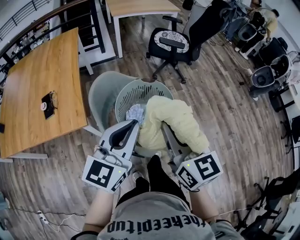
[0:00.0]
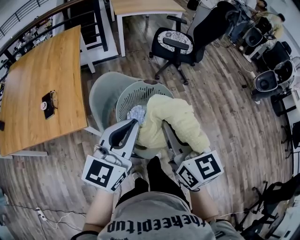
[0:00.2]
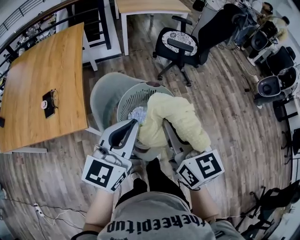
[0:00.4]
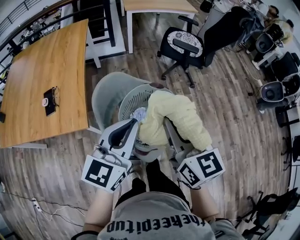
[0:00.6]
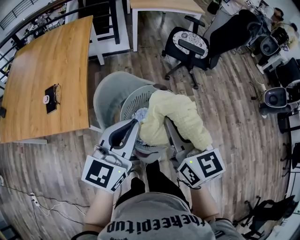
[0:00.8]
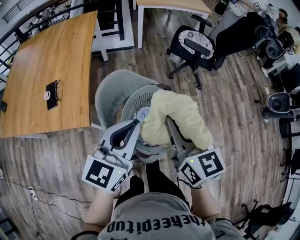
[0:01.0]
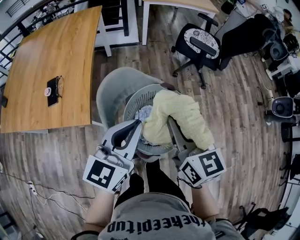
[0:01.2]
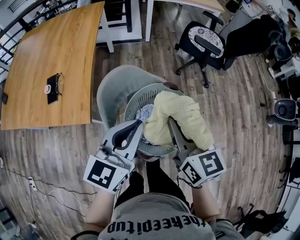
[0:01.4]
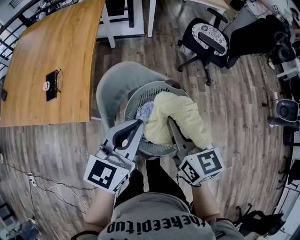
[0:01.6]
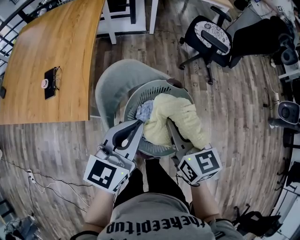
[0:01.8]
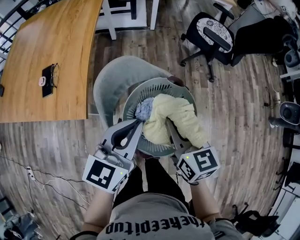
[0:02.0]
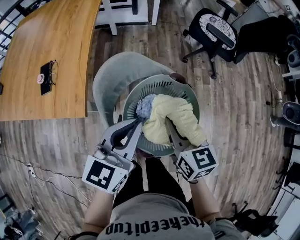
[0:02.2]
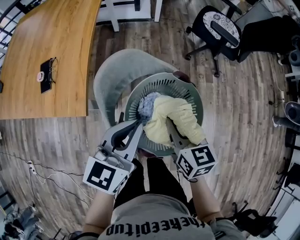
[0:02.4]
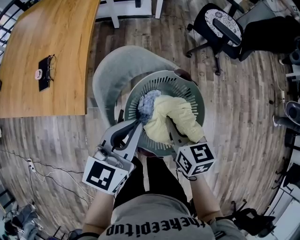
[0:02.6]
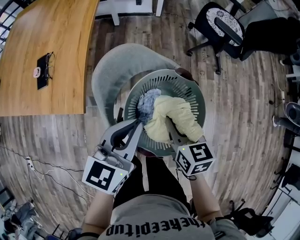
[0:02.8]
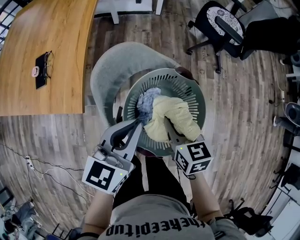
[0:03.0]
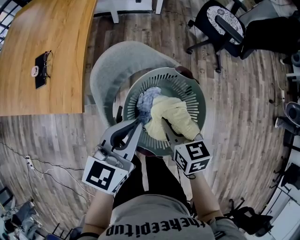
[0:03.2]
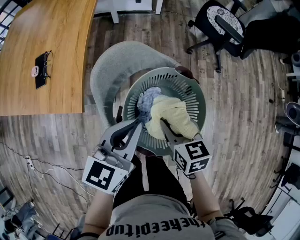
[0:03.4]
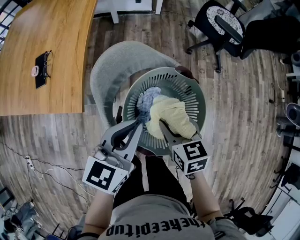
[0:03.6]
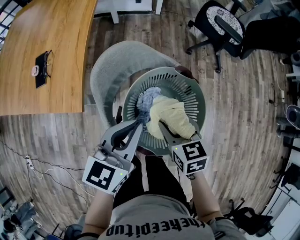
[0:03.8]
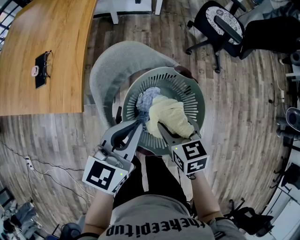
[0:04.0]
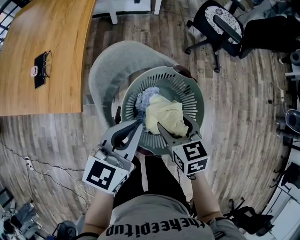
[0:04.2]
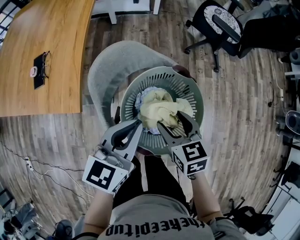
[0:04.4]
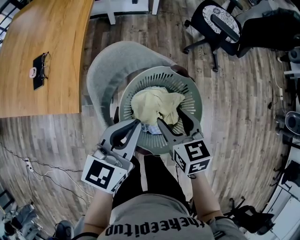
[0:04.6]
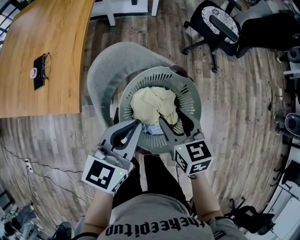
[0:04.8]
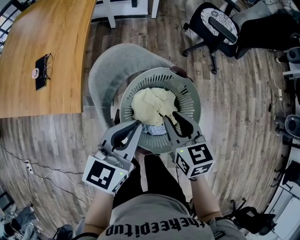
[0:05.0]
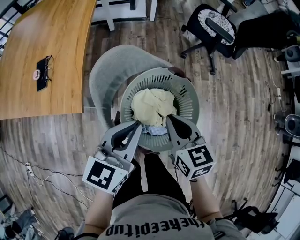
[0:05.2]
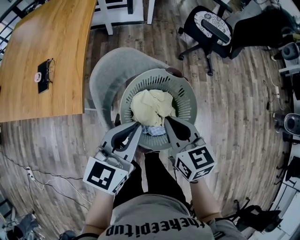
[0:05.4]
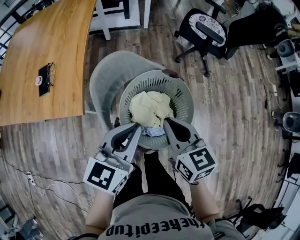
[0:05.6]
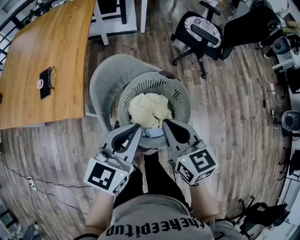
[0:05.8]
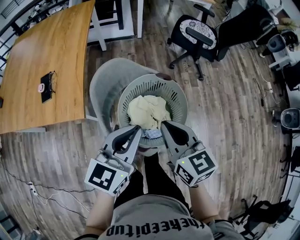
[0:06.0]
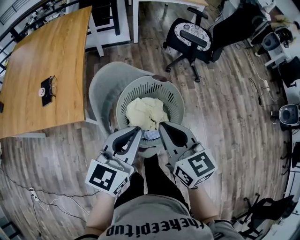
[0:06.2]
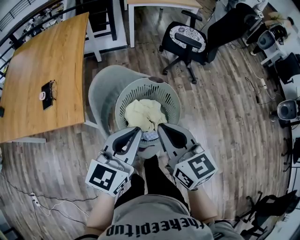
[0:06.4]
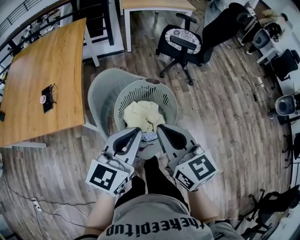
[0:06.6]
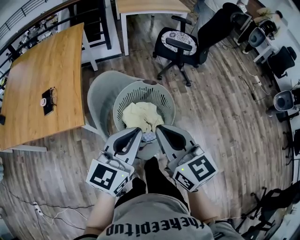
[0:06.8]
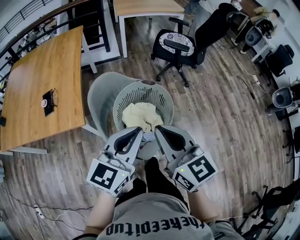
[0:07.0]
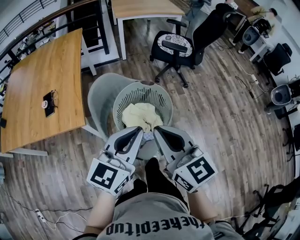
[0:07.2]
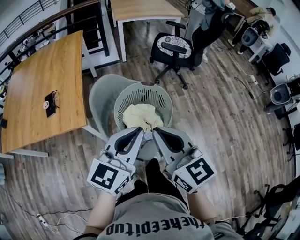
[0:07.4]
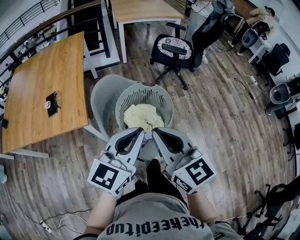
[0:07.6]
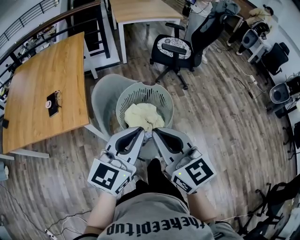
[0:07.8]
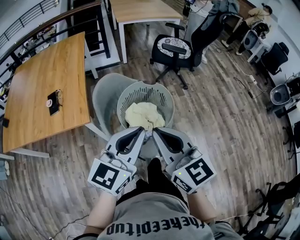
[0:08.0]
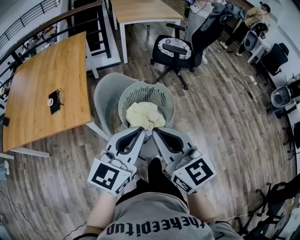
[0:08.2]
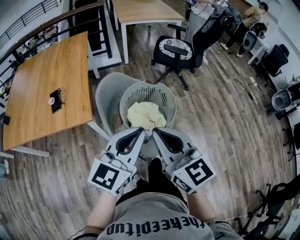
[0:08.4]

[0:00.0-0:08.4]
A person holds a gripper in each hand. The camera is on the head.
0:00.0 to 0:01.4: The right gripper is displaced forward and downward by some 15 cm; the left gripper goes approximately 10 cm forward.
0:01.4 to 0:02.8: The right gripper goes about 15 cm downward, and changes its angle by about 20 degrees; the left gripper moves downward, about 10 cm.
0:02.8 to 0:04.2: The right gripper opens up.
0:04.2 to 0:05.6: The left gripper changes place by approximately 5 cm. The right gripper goes roughly 10 cm upward, and closes.
0:05.6 to 0:07.0: The grippers both shift upward and backward by approximately 15 cm.
0:07.0 to 0:08.4: Both grippers move backward, roughly 5 cm.

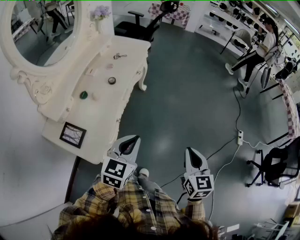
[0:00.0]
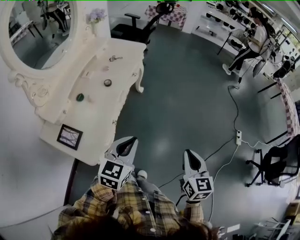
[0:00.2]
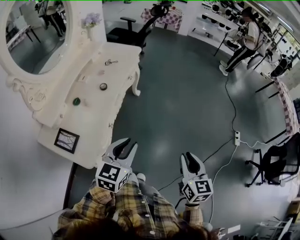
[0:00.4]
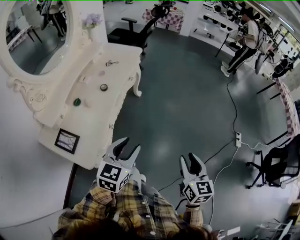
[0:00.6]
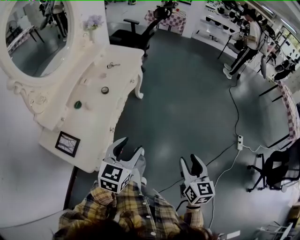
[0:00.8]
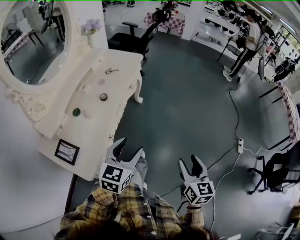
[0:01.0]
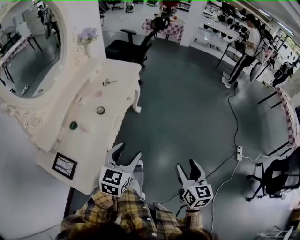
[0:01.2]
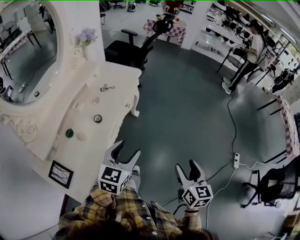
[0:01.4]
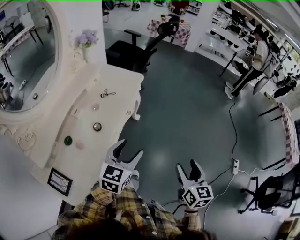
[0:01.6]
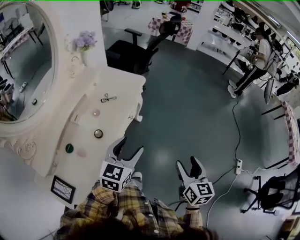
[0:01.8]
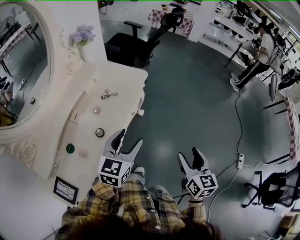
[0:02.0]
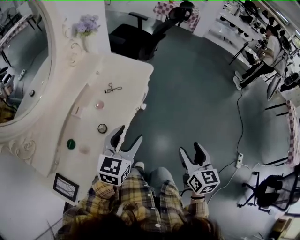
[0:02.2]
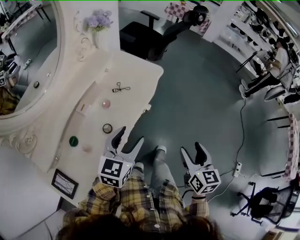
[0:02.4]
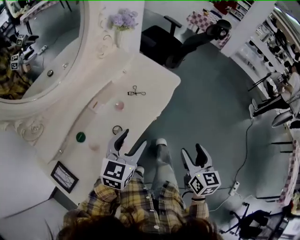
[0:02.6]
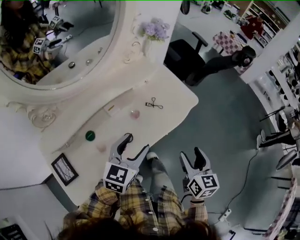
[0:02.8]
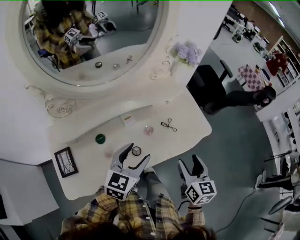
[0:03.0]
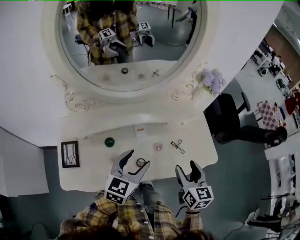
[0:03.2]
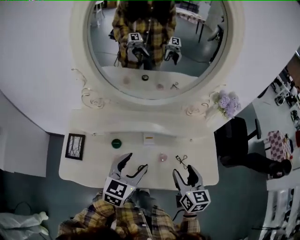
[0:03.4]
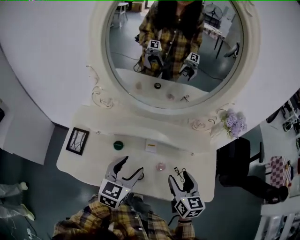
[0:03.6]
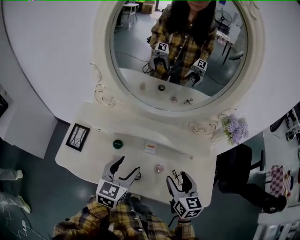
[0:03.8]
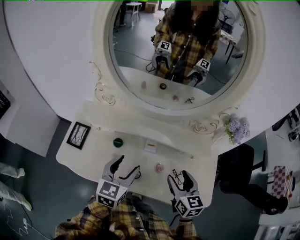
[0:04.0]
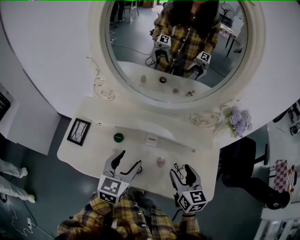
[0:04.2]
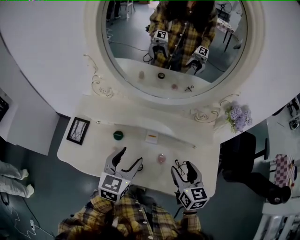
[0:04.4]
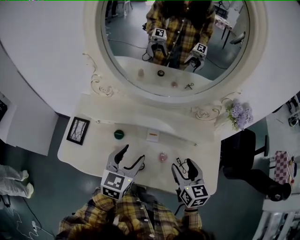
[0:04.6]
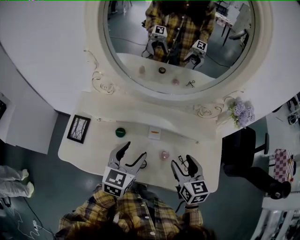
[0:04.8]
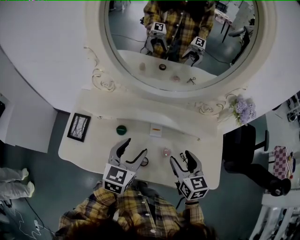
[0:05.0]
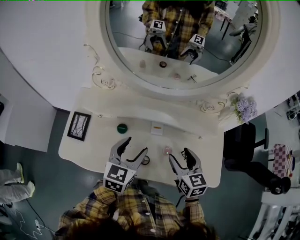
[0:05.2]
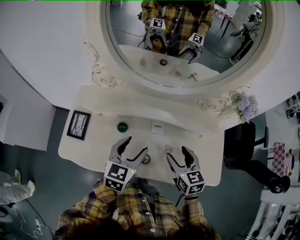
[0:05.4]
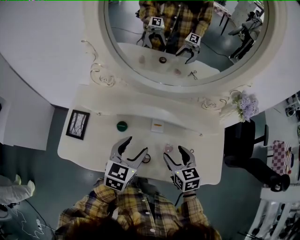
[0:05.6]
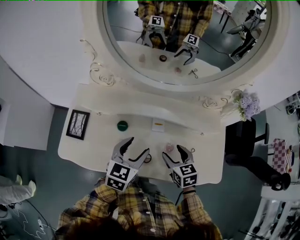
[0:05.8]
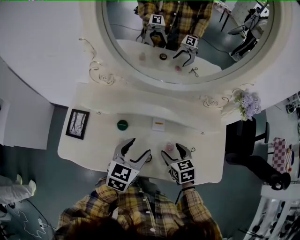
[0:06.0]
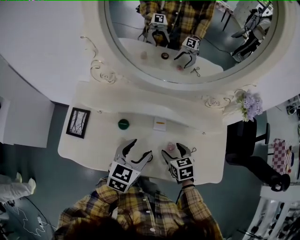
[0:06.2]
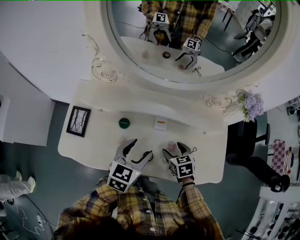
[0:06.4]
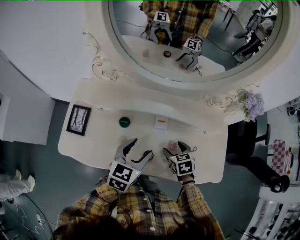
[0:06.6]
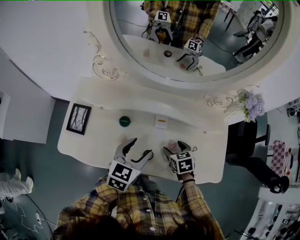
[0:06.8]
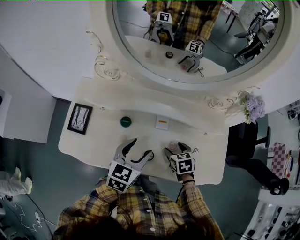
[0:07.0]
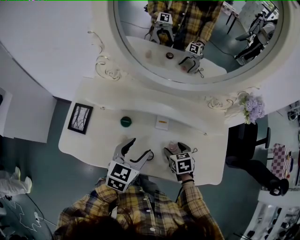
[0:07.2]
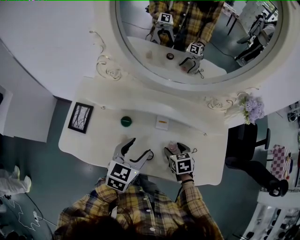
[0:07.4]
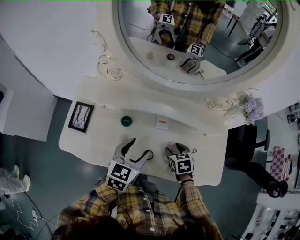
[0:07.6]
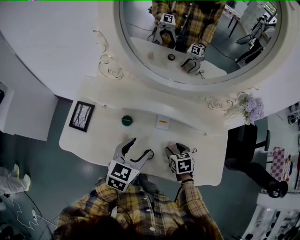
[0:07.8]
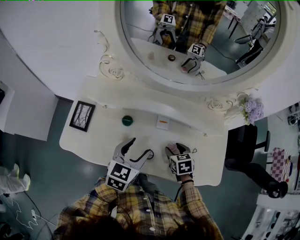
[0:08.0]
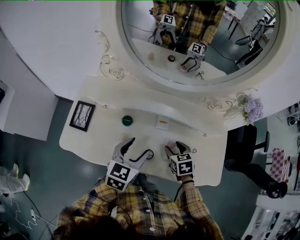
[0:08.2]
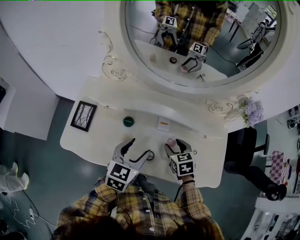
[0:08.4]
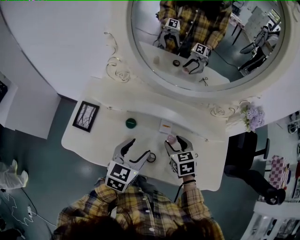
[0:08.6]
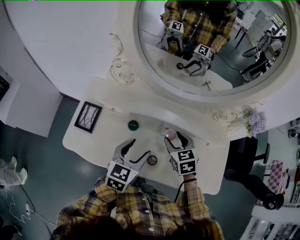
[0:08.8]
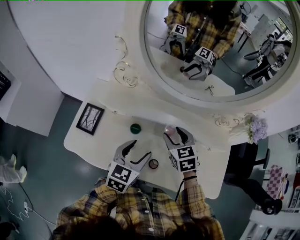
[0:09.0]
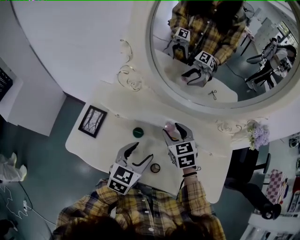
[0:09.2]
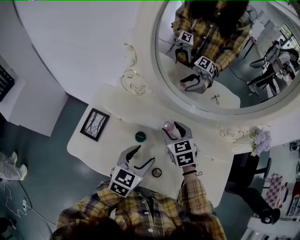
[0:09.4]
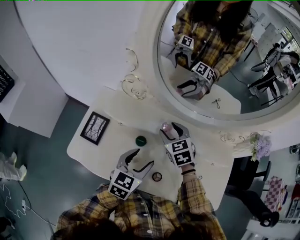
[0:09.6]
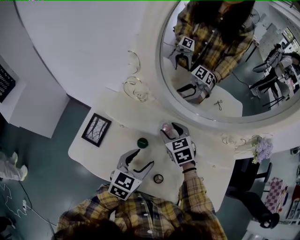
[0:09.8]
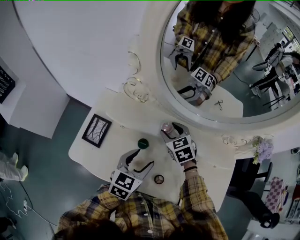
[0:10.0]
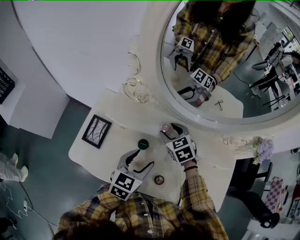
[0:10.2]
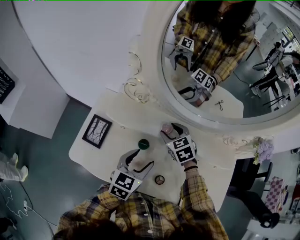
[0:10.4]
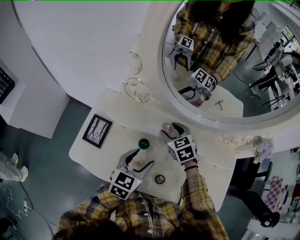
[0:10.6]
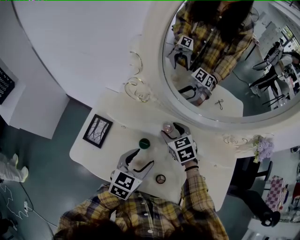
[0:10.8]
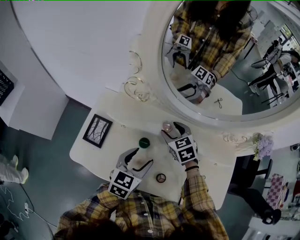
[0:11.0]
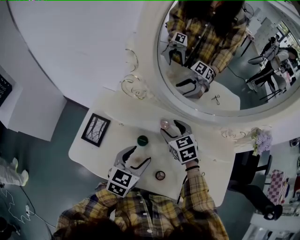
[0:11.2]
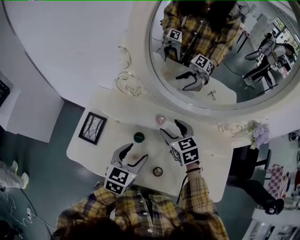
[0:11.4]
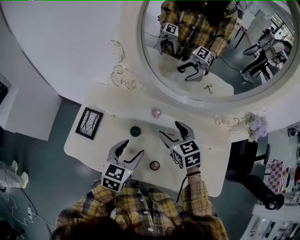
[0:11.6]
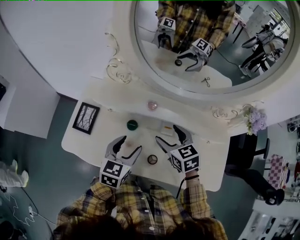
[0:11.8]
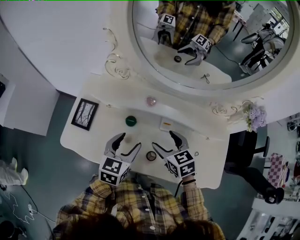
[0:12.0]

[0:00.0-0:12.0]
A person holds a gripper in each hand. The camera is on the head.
0:00.0 to 0:01.6: The grippers both shift forward by roughly 25 cm. The left gripper opens. Meanwhile the right gripper opens its fingers.
0:01.6 to 0:03.0: The left gripper ends up some 25 cm from where it was, and rotates about 40 degrees. The right gripper shifts by approximately 40 cm, and swivels about 50 degrees.
0:03.0 to 0:04.4: The right gripper changes place by roughly 15 cm, and swivels about 40 degrees. The left gripper shifts by roughly 5 cm, and rotates some 40 degrees.
0:04.4 to 0:06.0: The right gripper heads downward and to the left, covering about 15 cm, and swivels roughly 20 degrees. The left gripper moves downward, some 5 cm.
0:06.0 to 0:07.6: The right gripper is displaced downward by about 5 cm.
0:07.6 to 0:09.0: The right gripper is displaced upward, to the left and forward by some 20 cm, and changes its angle by approximately 20 degrees.
0:09.0 to 0:10.4: The right gripper moves forward and to the left, some 10 cm; the left gripper ends up approximately 5 cm from where it was.
0:10.4 to 0:12.0: The right gripper heads backward, covering some 15 cm.

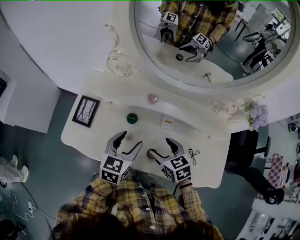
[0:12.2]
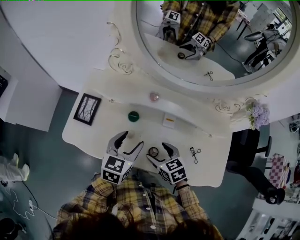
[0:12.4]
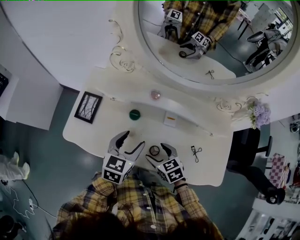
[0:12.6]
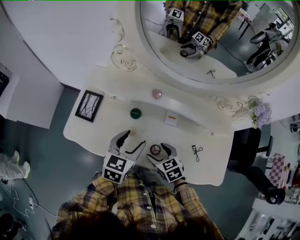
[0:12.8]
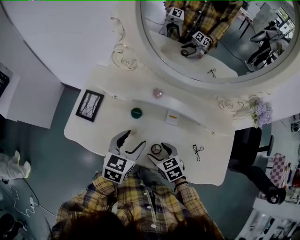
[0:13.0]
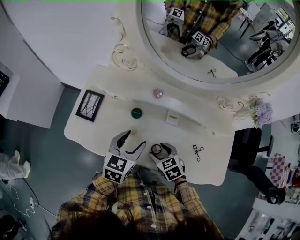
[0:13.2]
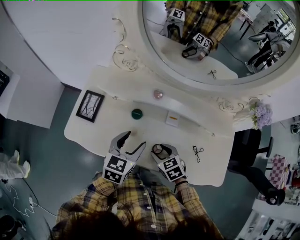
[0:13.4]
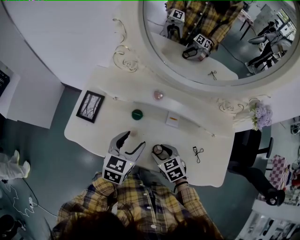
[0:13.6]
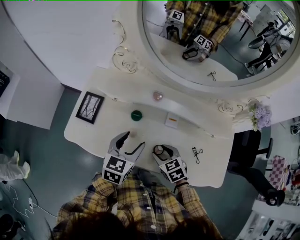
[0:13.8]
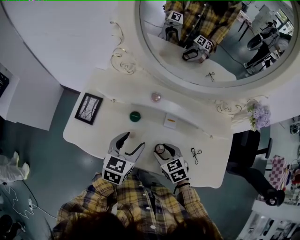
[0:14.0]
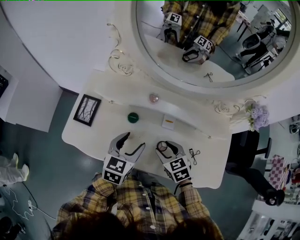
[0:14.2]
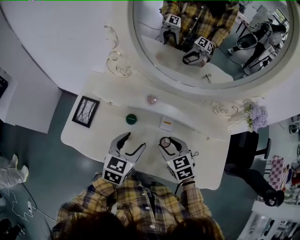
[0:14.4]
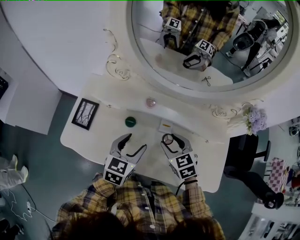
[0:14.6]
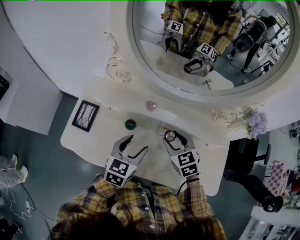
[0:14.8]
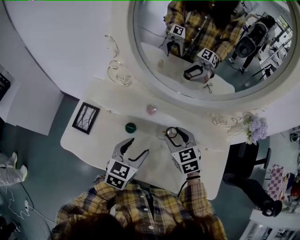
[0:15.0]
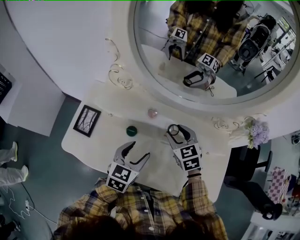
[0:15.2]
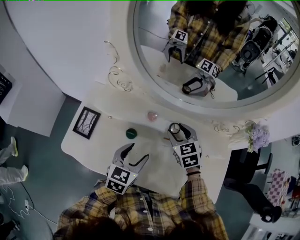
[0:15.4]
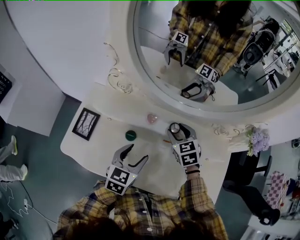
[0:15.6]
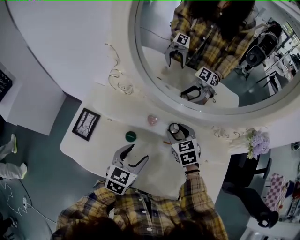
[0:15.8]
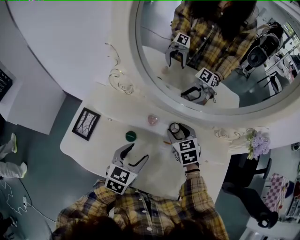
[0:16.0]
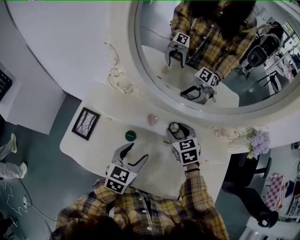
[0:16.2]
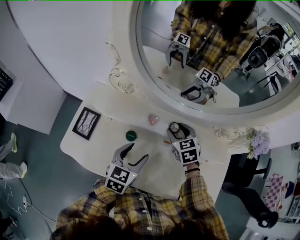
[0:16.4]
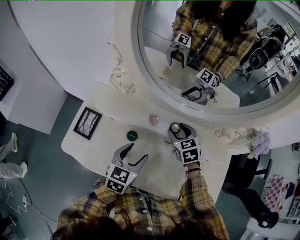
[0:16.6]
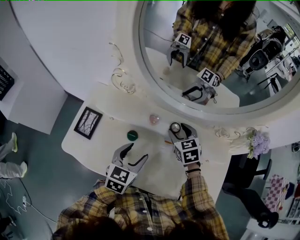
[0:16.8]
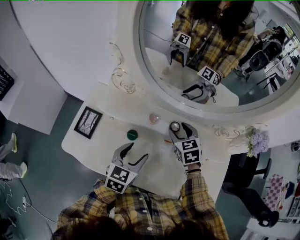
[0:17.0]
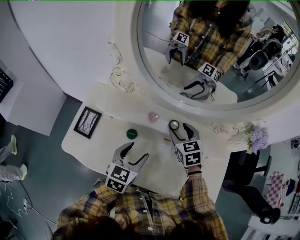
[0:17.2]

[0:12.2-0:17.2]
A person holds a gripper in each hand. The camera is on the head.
0:12.2 to 0:13.8: The right gripper travels downward by some 5 cm, and closes.
0:13.8 to 0:15.6: The right gripper moves forward and upward, approximately 25 cm, while the left gripper ends up approximately 5 cm from where it was.
0:15.6 to 0:17.2: There are only small adjustments of the grippers.
